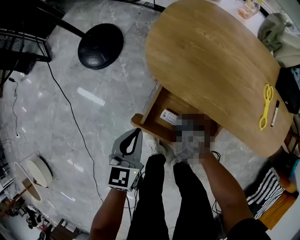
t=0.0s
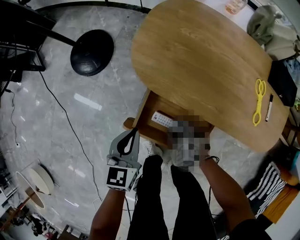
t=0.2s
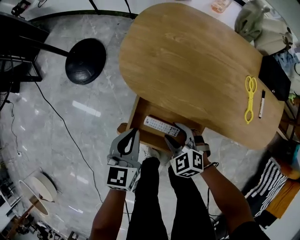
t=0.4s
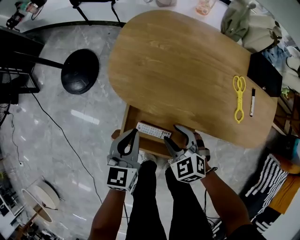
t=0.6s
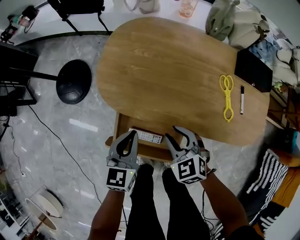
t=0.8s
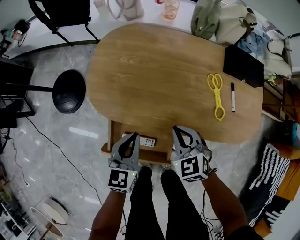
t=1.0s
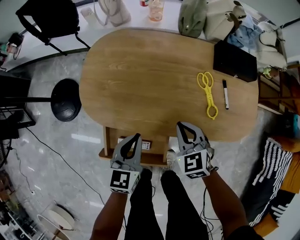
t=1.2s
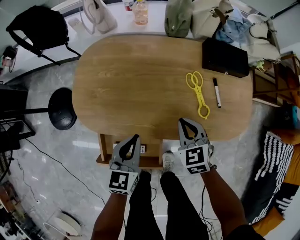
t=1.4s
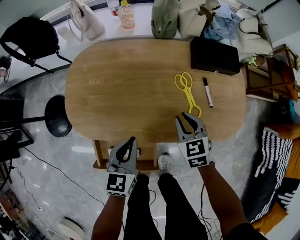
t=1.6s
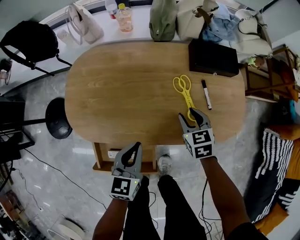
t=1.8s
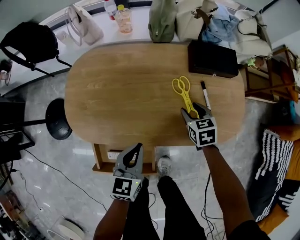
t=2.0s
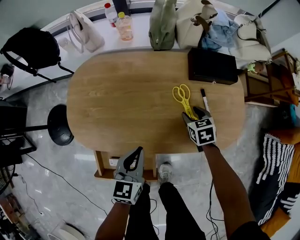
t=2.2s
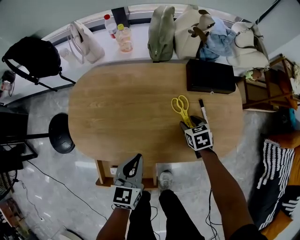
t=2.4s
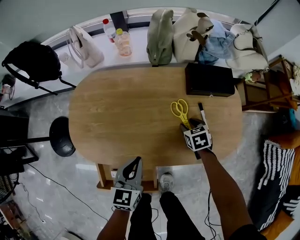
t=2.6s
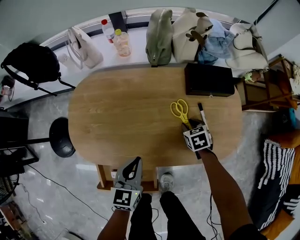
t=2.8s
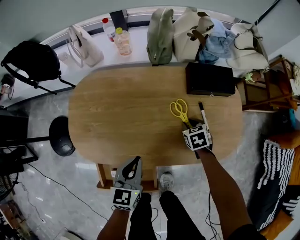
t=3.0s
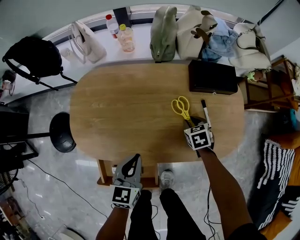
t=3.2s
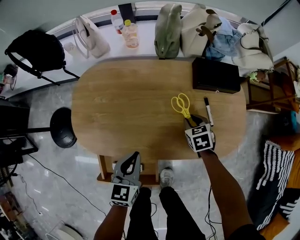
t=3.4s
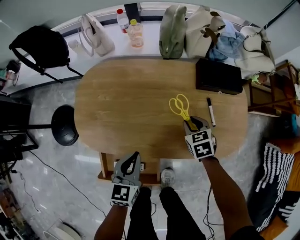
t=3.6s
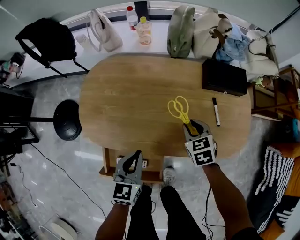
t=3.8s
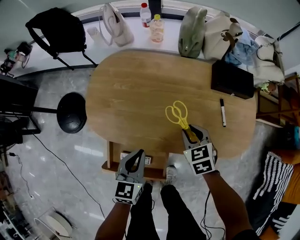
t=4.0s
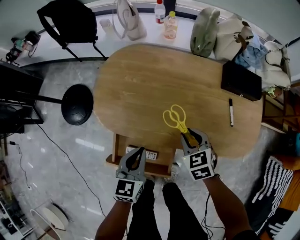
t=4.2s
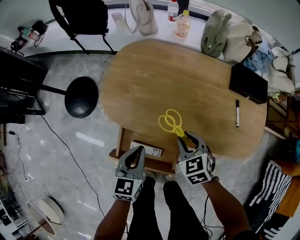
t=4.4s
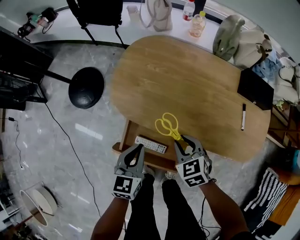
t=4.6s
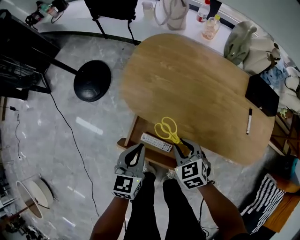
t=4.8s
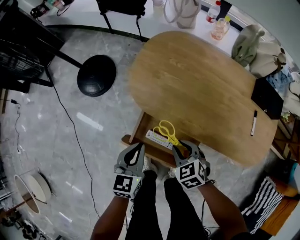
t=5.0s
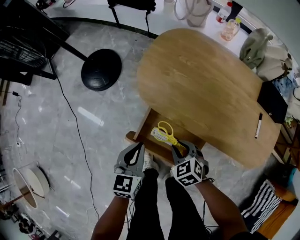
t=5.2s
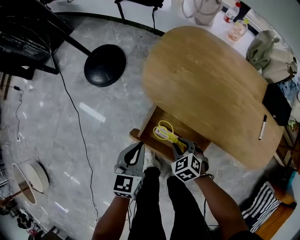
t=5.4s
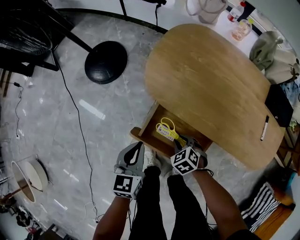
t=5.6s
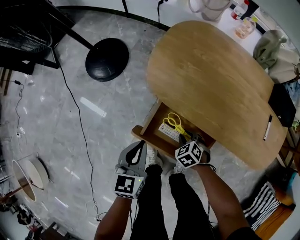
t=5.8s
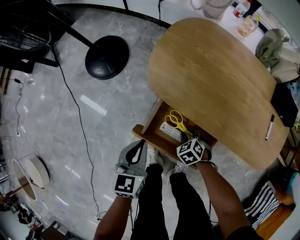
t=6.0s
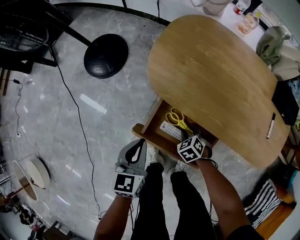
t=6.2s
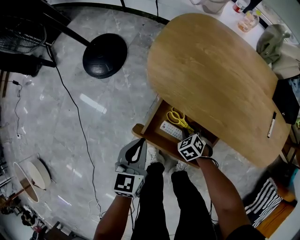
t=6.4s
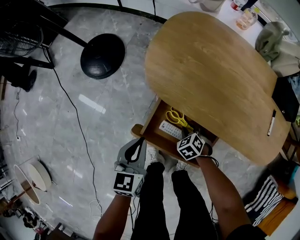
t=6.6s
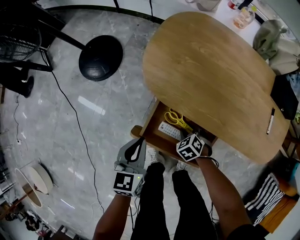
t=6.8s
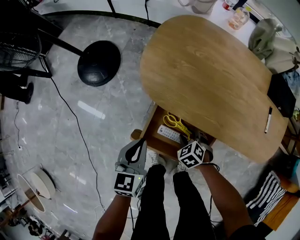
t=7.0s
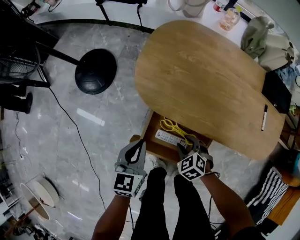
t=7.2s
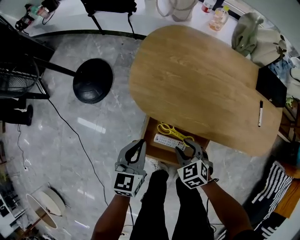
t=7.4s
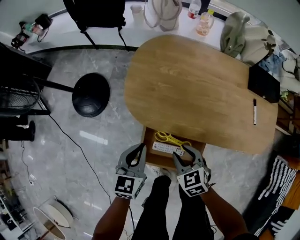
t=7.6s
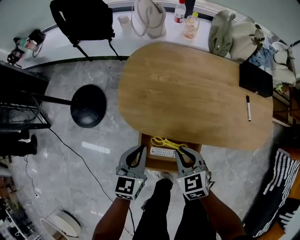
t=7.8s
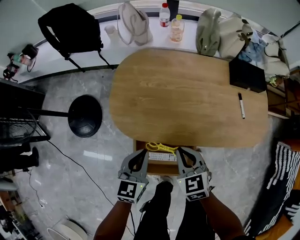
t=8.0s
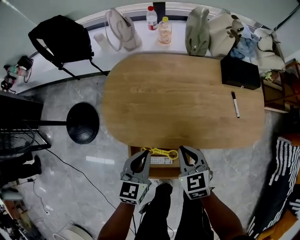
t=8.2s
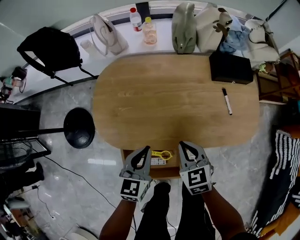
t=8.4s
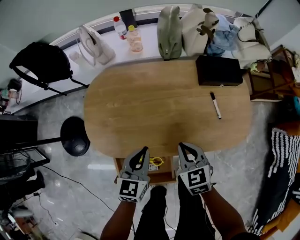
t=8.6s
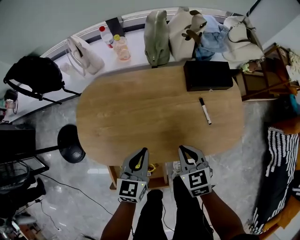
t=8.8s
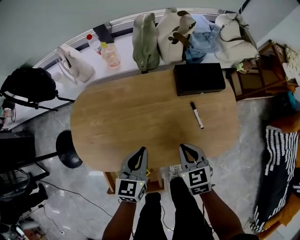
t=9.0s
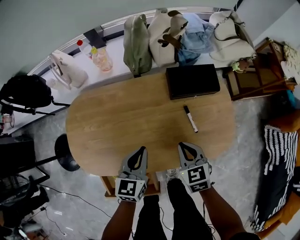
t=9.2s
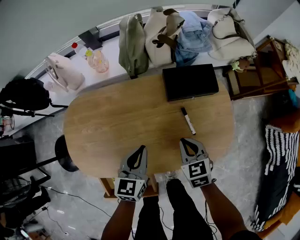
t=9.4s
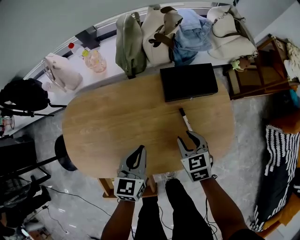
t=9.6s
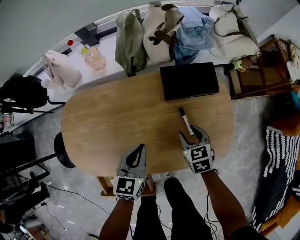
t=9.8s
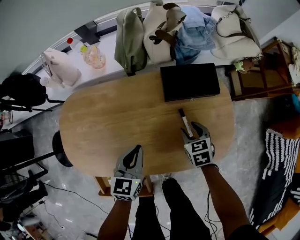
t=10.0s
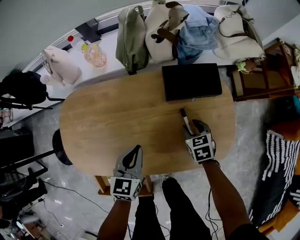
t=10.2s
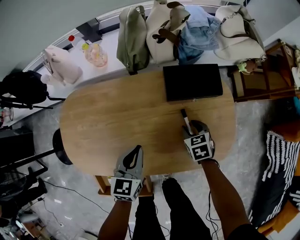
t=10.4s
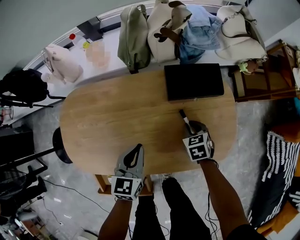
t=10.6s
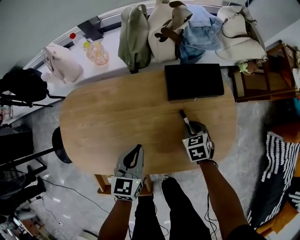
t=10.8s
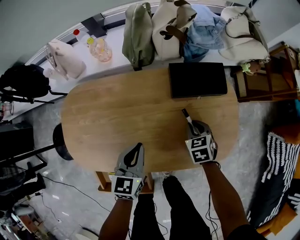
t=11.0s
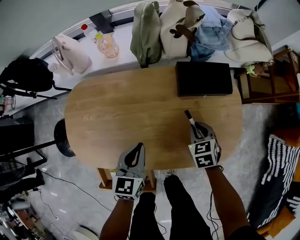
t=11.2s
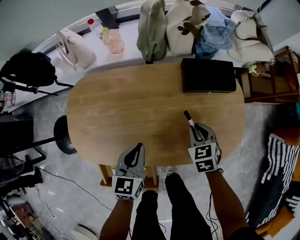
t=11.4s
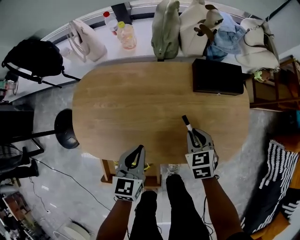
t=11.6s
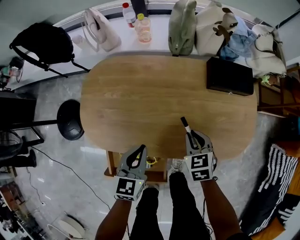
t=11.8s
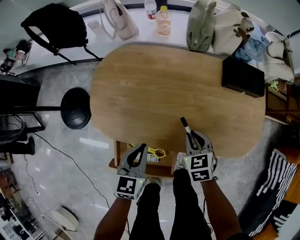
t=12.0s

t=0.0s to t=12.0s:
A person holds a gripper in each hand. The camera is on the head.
t=0.0s to t=1.6s: The right gripper shifts by some 40 cm, rotates around the line of its fingers by about 50 degrees, clockwise from behind, and closes its fingers; the left gripper changes place by approximately 35 cm, and rotates about 30 degrees.
t=1.6s to t=3.0s: The right gripper heads downward, forward and to the right, covering some 15 cm, and rotates about 20 degrees.
t=3.0s to t=4.4s: The right gripper moves to the left, backward and upward, some 30 cm, and changes its angle by approximately 30 degrees. The left gripper is displaced to the left and backward by roughly 15 cm.
t=4.4s to t=6.0s: The left gripper moves to the left, about 20 cm, while the right gripper is displaced downward and to the left by some 25 cm, and swivels roughly 30 degrees.
t=6.0s to t=7.6s: The right gripper goes roughly 20 cm upward, and changes its angle by about 30 degrees; the left gripper heads forward and to the right, covering approximately 10 cm.
t=7.6s to t=9.0s: The left gripper moves approximately 35 cm; the right gripper ends up about 35 cm from where it was, changes its angle by roughly 30 degrees, and closes its fingers.
t=9.0s to t=10.4s: The left gripper moves to the right and forward, some 10 cm; the right gripper heads downward, to the right and forward, covering roughly 20 cm, and opens its fingers.
t=10.4s to t=12.0s: Both grippers move to the left and backward, approximately 25 cm.

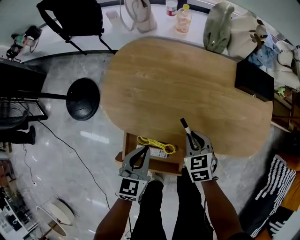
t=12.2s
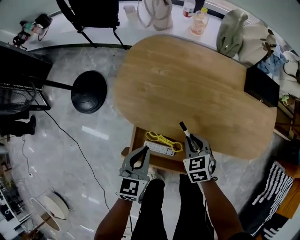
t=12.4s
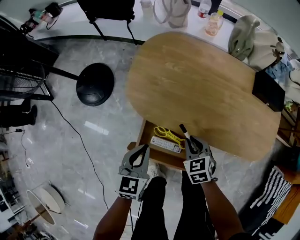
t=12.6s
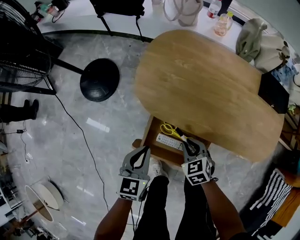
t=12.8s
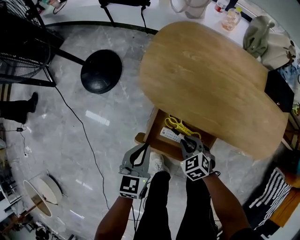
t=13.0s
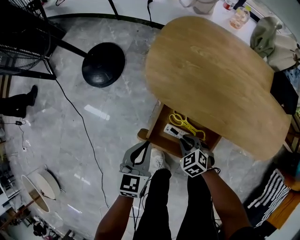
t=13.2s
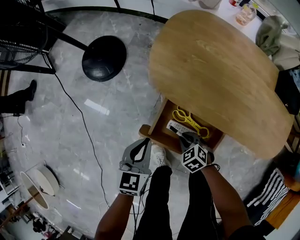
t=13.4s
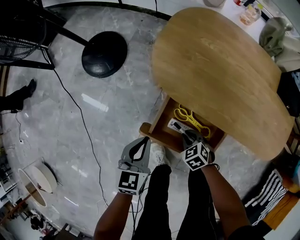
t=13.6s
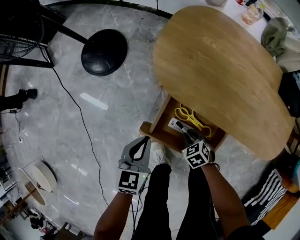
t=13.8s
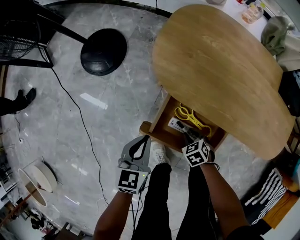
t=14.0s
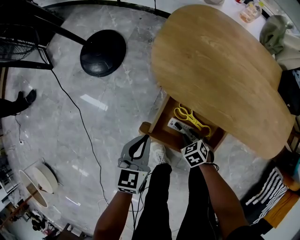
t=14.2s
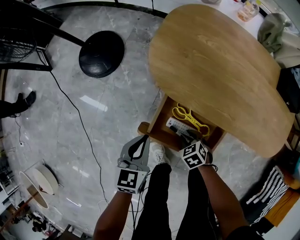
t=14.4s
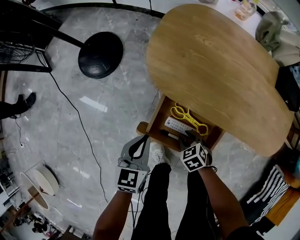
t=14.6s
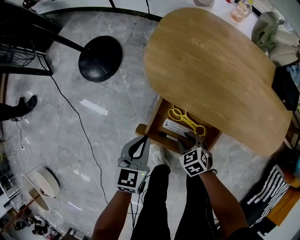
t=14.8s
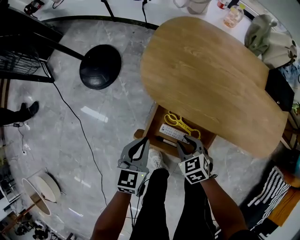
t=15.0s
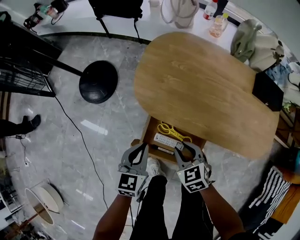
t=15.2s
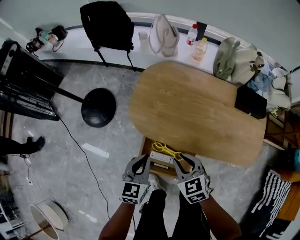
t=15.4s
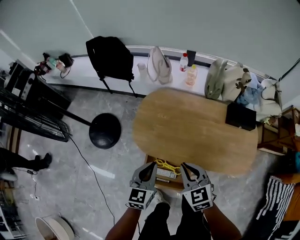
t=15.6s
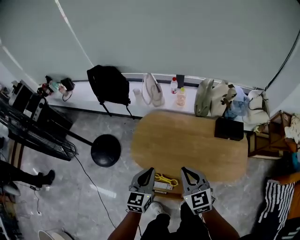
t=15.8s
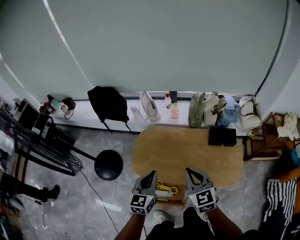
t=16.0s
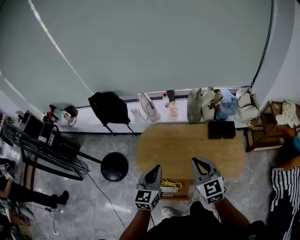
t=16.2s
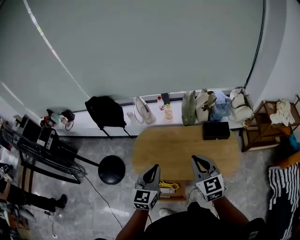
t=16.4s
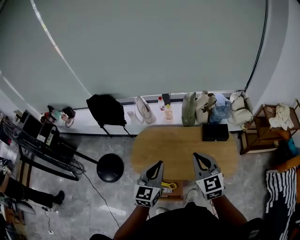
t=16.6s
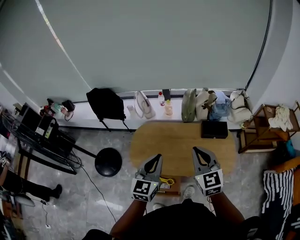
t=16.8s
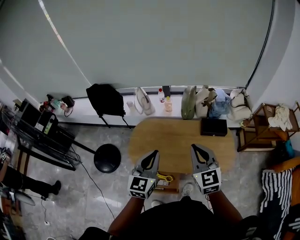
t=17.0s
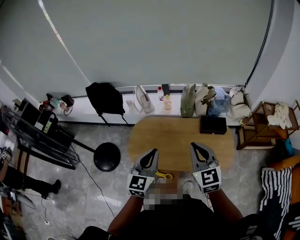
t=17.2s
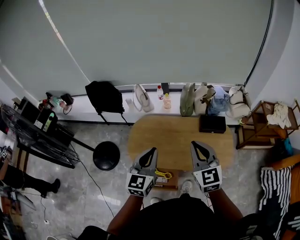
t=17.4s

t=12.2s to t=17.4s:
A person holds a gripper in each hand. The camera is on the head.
t=12.2s to t=14.0s: The right gripper changes place by approximately 30 cm, and changes its angle by about 30 degrees. The left gripper ends up some 25 cm from where it was.
t=14.0s to t=15.6s: The left gripper goes some 30 cm upward and to the right, while the right gripper shifts roughly 40 cm upward, and points its fingers about 40 degrees further upward.
t=15.6s to t=17.4s: Both grippers travel together upward and to the right, about 30 cm. The right gripper rotates approximately 30 degrees.

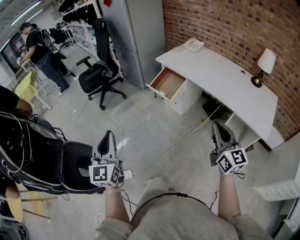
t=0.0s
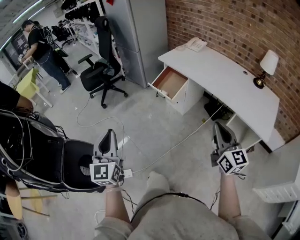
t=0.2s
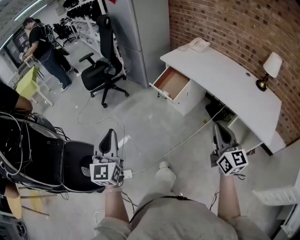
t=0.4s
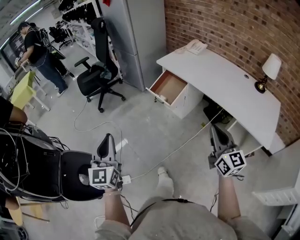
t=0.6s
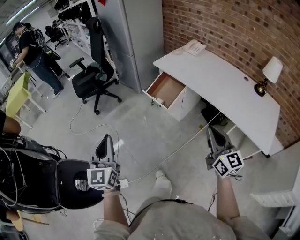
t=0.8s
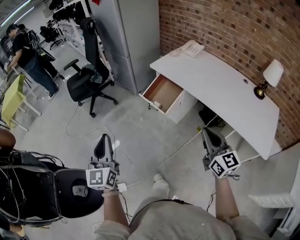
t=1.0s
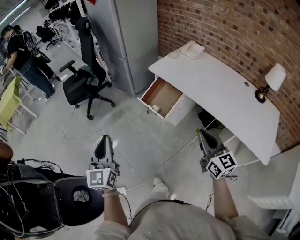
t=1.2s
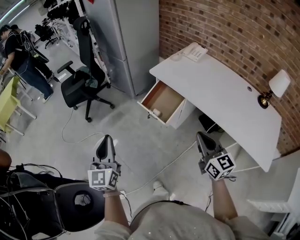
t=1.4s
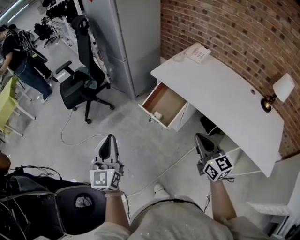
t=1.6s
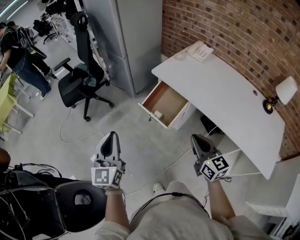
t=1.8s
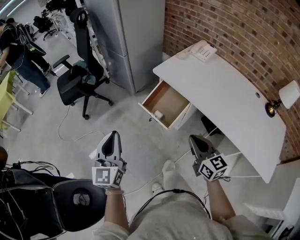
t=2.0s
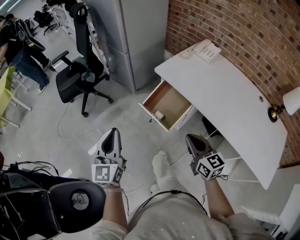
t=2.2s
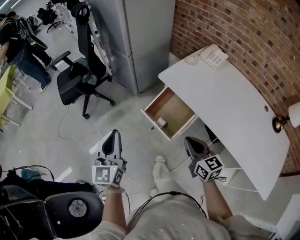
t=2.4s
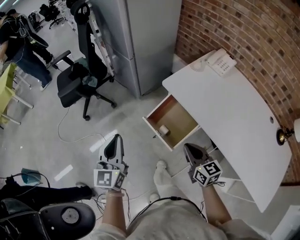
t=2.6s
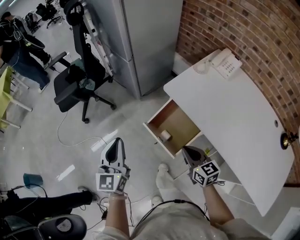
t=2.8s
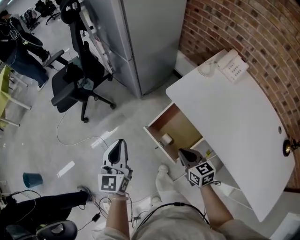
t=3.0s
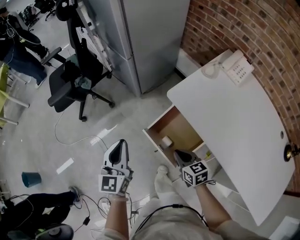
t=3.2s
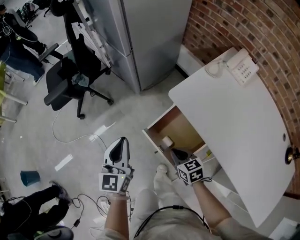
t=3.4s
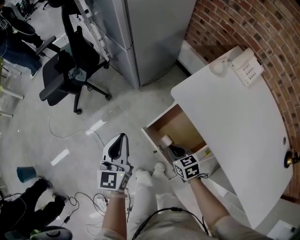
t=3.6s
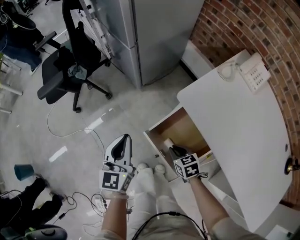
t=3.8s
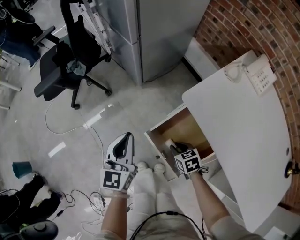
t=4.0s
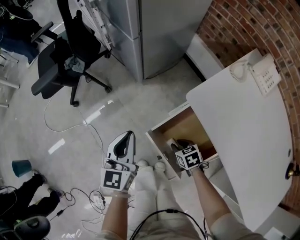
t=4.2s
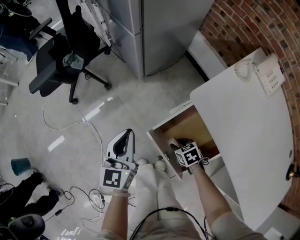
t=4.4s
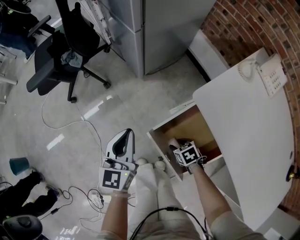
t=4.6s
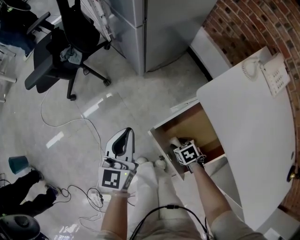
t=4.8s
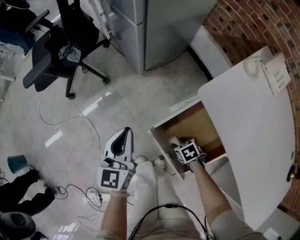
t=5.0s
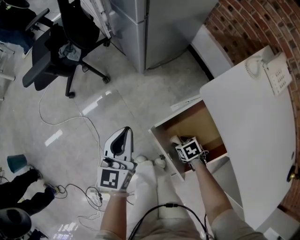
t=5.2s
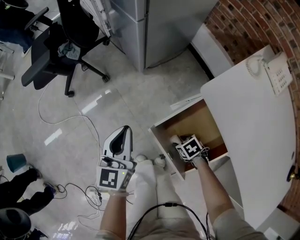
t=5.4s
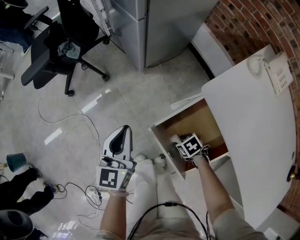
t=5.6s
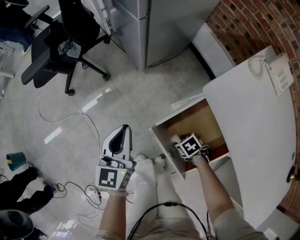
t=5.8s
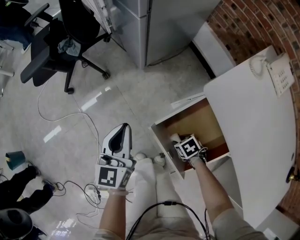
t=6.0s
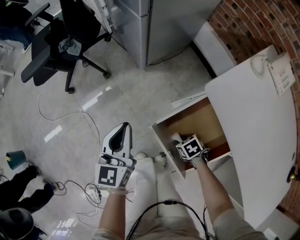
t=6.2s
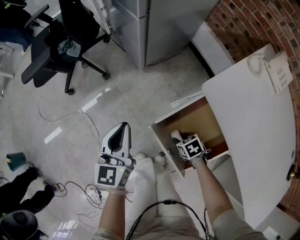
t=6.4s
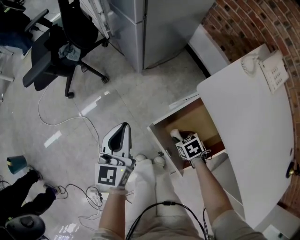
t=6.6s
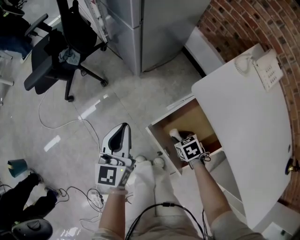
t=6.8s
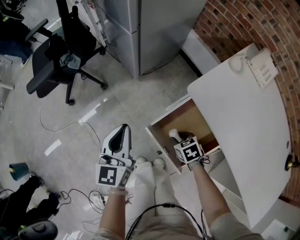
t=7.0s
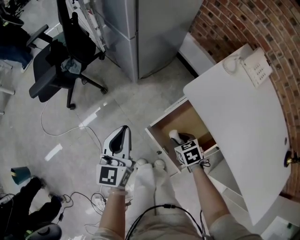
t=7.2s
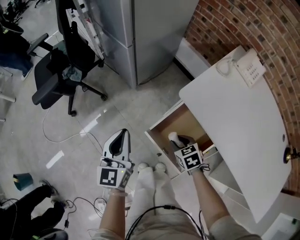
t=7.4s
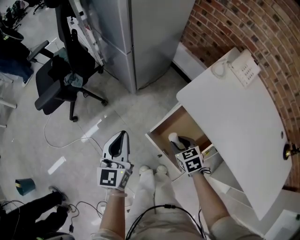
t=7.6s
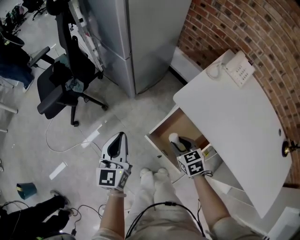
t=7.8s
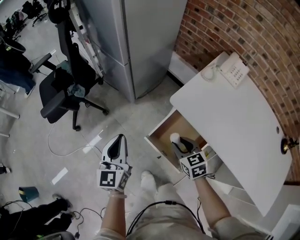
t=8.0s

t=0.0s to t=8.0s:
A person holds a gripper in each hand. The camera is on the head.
t=0.0s to t=1.6s: The two grippers go some 30 cm forward.
t=1.6s to t=3.2s: The grippers both shift forward and downward by roughly 35 cm. The right gripper tilts its fingers some 30 degrees downward.
t=3.2s to t=4.8s: The left gripper moves downward and forward, roughly 15 cm. The right gripper travels downward by about 25 cm, points its fingers about 40 degrees further downward, and opens.
t=4.8s to t=6.4s: The grippers make only small movements.
t=6.4s to t=8.0s: The right gripper goes approximately 25 cm upward, and angles its fingers upward, by about 30 degrees. The left gripper shifts about 15 cm upward.
